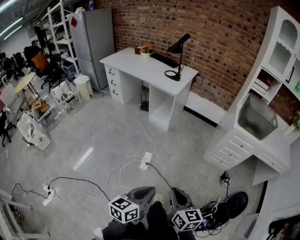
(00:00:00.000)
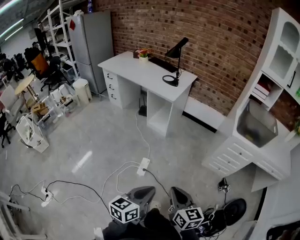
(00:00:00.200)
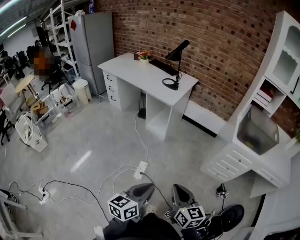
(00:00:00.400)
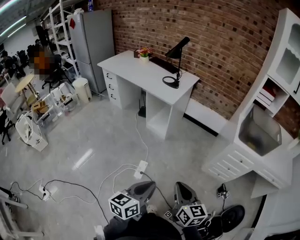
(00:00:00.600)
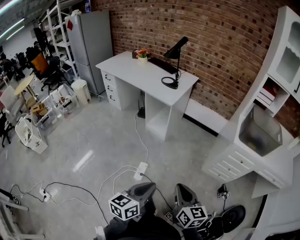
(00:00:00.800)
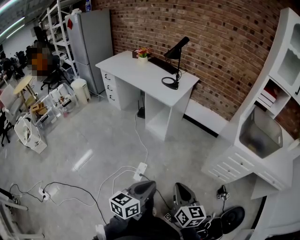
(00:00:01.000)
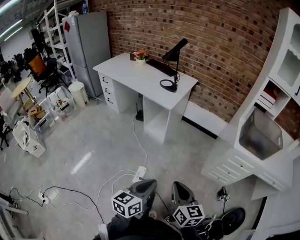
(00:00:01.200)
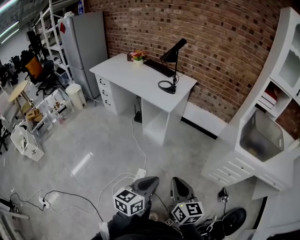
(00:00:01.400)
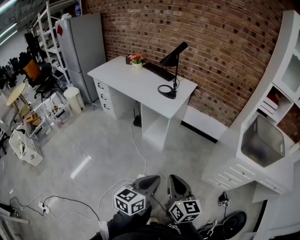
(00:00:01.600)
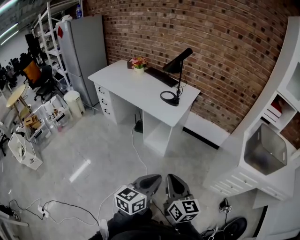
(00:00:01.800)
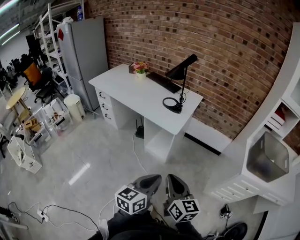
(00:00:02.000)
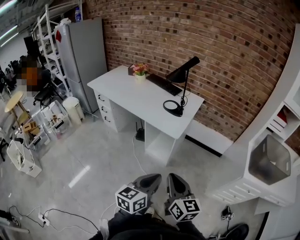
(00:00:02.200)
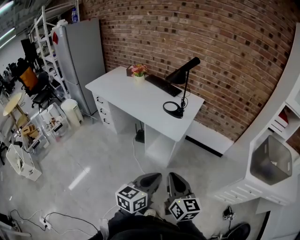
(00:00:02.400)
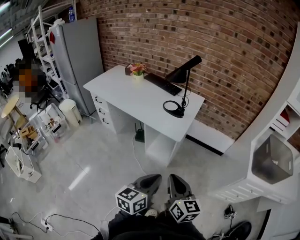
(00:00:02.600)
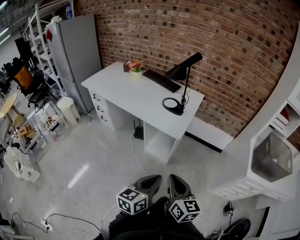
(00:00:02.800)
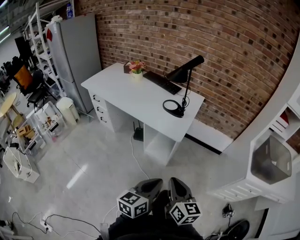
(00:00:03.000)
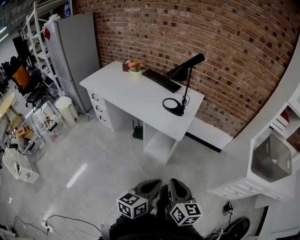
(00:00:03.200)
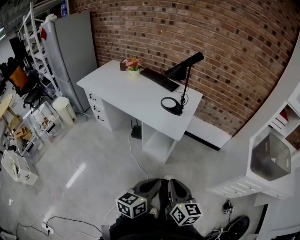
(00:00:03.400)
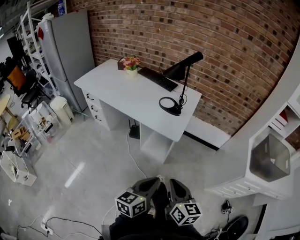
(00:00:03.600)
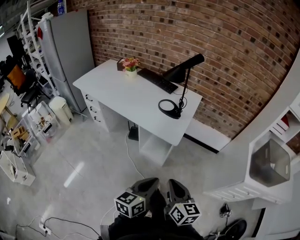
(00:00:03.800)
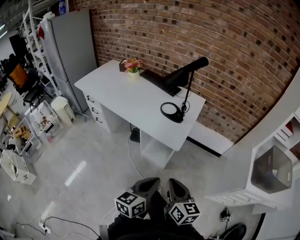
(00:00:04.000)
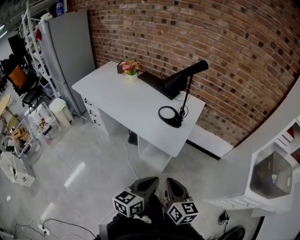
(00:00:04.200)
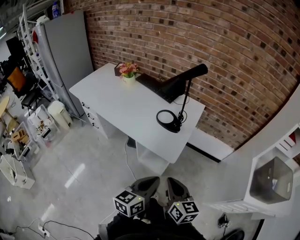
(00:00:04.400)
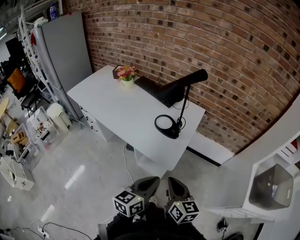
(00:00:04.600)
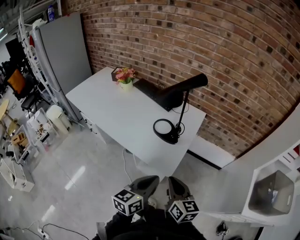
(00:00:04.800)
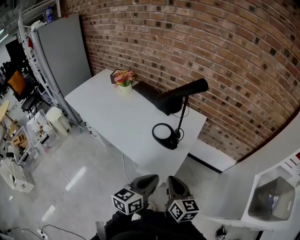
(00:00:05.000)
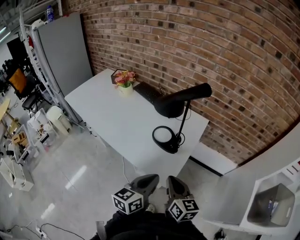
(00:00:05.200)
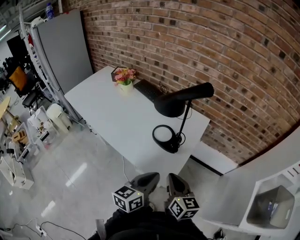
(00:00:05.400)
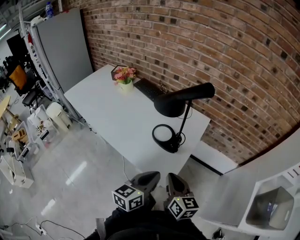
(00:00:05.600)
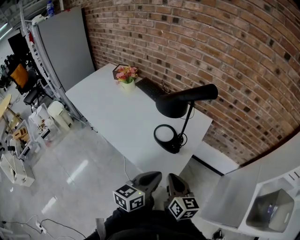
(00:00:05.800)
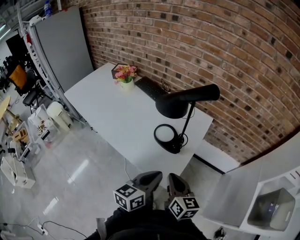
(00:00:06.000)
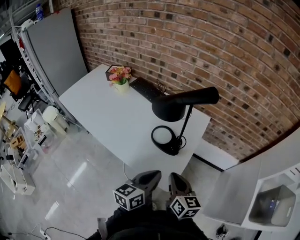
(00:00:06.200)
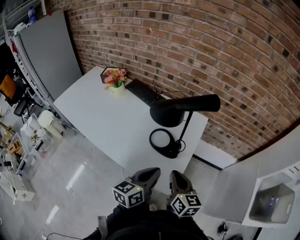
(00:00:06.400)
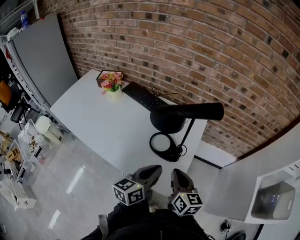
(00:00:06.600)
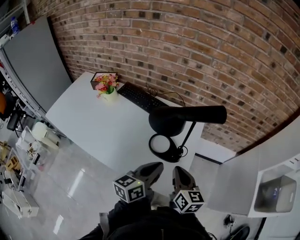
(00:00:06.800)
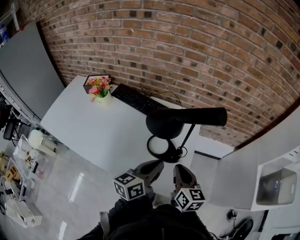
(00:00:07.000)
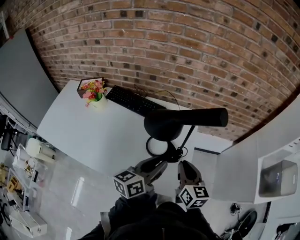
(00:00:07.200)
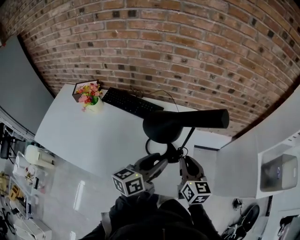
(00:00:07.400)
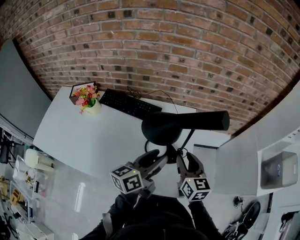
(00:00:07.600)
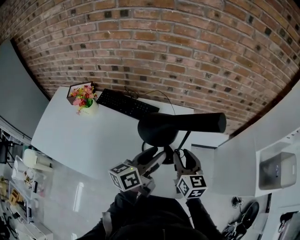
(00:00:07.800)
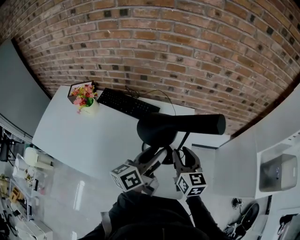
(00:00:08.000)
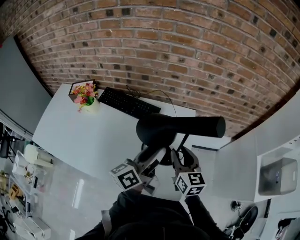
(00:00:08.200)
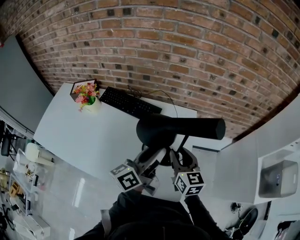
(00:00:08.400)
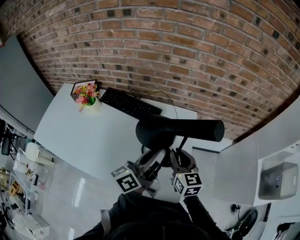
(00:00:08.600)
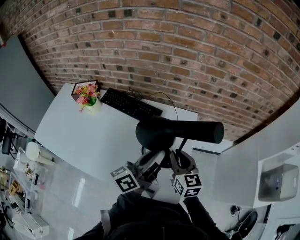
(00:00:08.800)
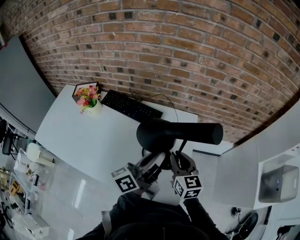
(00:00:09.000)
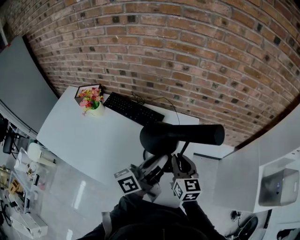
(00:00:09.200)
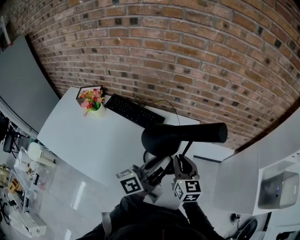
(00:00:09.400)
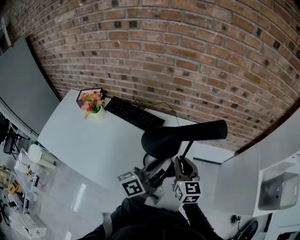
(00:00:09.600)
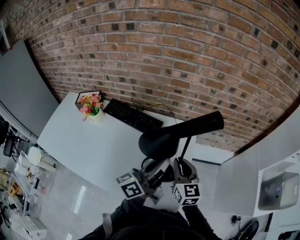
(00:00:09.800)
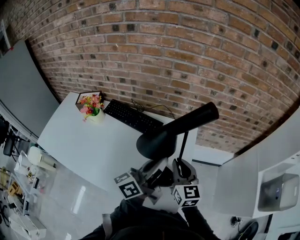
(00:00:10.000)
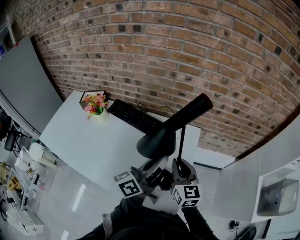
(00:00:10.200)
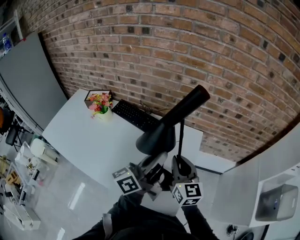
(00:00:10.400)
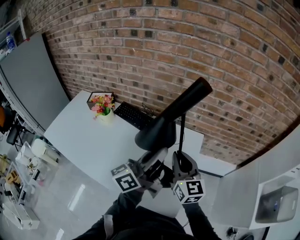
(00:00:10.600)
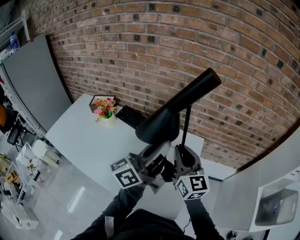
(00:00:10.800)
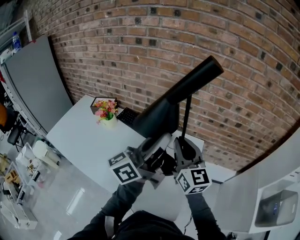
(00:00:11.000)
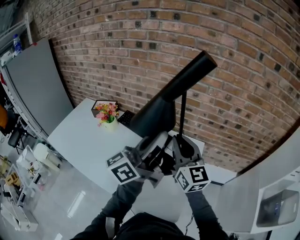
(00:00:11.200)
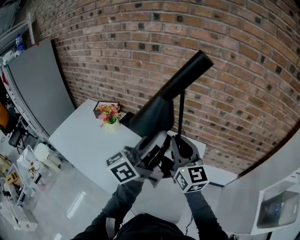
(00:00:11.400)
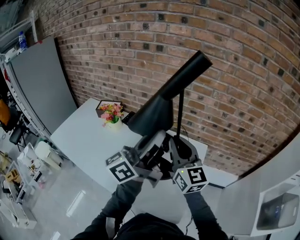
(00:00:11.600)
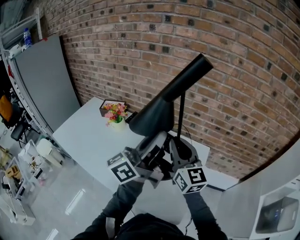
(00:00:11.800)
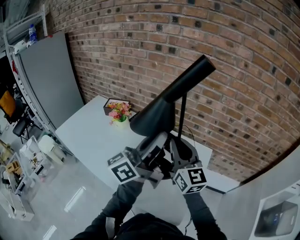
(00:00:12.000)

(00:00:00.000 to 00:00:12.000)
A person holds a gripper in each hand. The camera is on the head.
00:00:00.000 - 00:00:01.600: The two grippers go about 30 cm forward.
00:00:01.600 - 00:00:03.000: The two grippers go some 20 cm forward and to the left.
00:00:03.000 - 00:00:04.400: Both grippers move forward, roughly 20 cm.
00:00:04.400 - 00:00:06.000: The grippers both shift forward by approximately 20 cm.
00:00:06.000 - 00:00:07.600: The right gripper ends up approximately 15 cm from where it was, swivels about 30 degrees, and opens; the left gripper changes place by about 20 cm, changes its angle by approximately 30 degrees, and opens up.
00:00:07.600 - 00:00:09.000: The left gripper shifts by some 5 cm, rotates approximately 20 degrees, and closes up.
00:00:09.000 - 00:00:10.400: The two grippers go approximately 5 cm upward.
00:00:10.400 - 00:00:12.000: Both grippers move upward and to the left, some 15 cm.

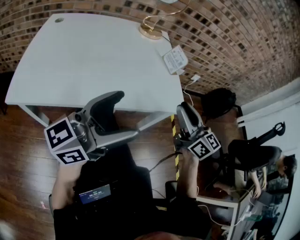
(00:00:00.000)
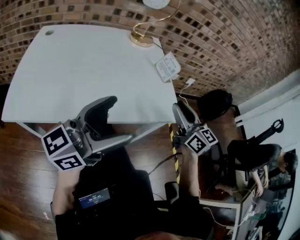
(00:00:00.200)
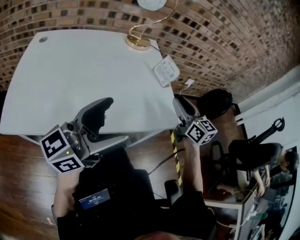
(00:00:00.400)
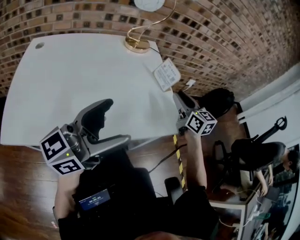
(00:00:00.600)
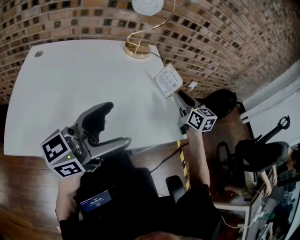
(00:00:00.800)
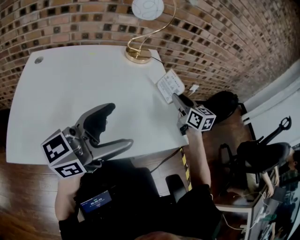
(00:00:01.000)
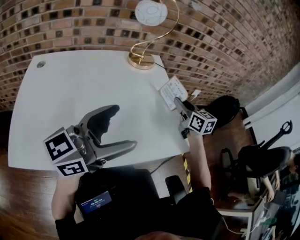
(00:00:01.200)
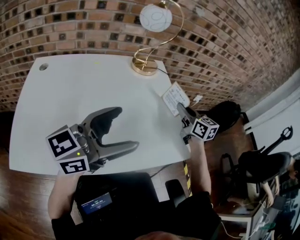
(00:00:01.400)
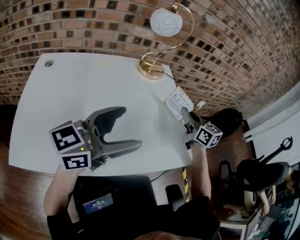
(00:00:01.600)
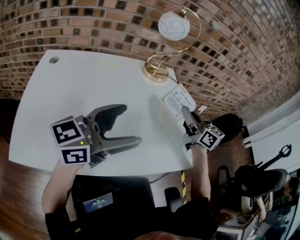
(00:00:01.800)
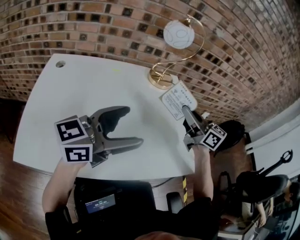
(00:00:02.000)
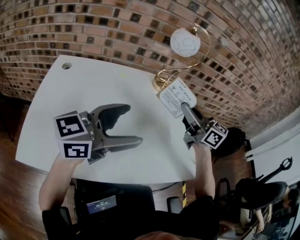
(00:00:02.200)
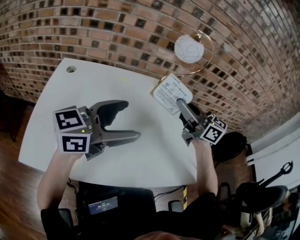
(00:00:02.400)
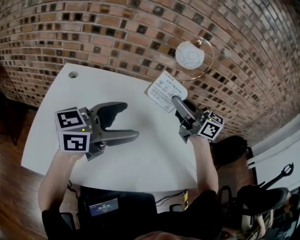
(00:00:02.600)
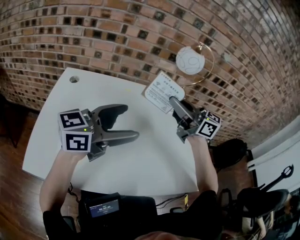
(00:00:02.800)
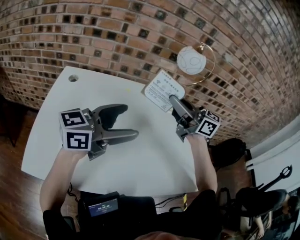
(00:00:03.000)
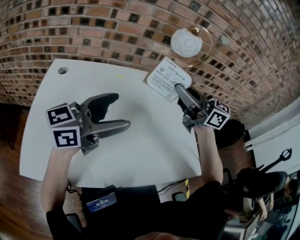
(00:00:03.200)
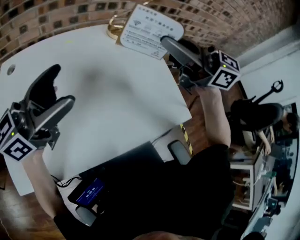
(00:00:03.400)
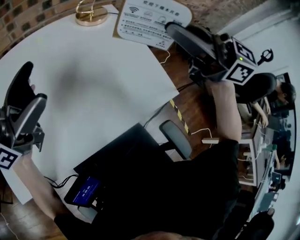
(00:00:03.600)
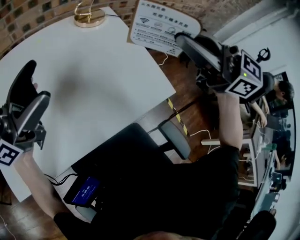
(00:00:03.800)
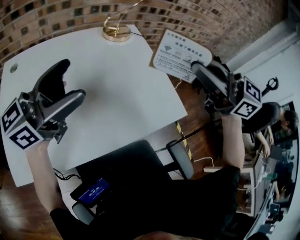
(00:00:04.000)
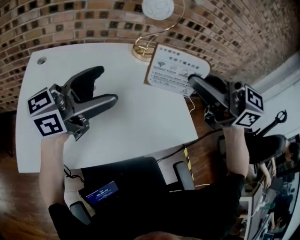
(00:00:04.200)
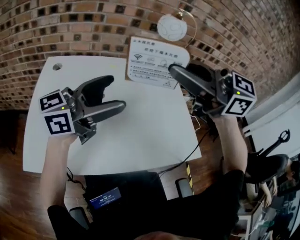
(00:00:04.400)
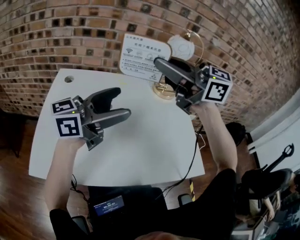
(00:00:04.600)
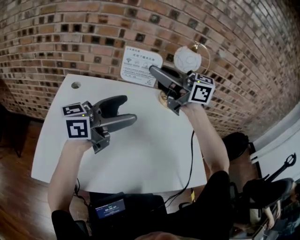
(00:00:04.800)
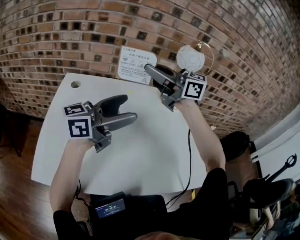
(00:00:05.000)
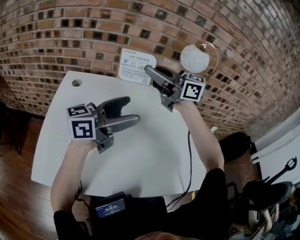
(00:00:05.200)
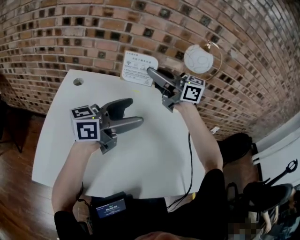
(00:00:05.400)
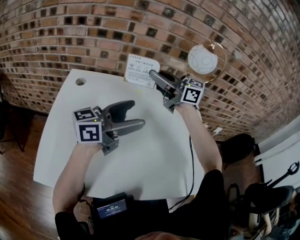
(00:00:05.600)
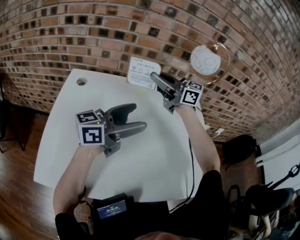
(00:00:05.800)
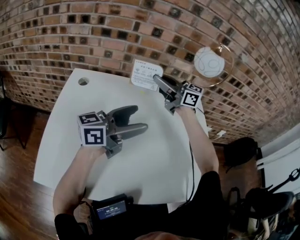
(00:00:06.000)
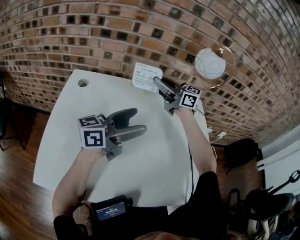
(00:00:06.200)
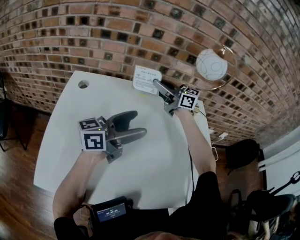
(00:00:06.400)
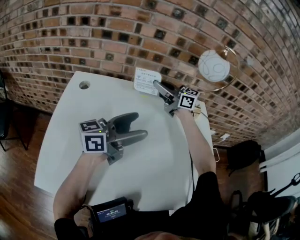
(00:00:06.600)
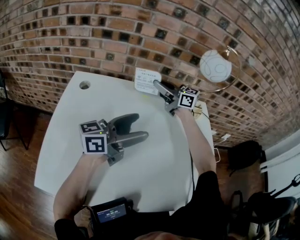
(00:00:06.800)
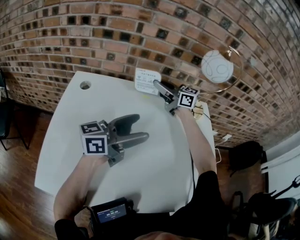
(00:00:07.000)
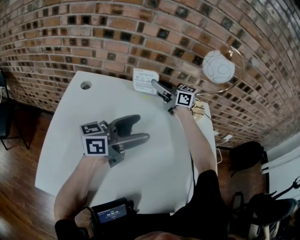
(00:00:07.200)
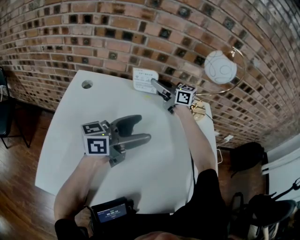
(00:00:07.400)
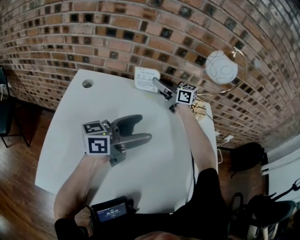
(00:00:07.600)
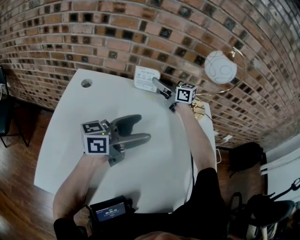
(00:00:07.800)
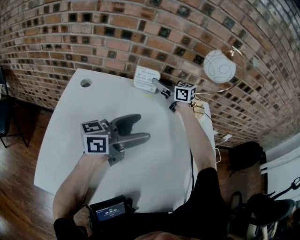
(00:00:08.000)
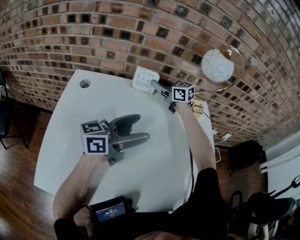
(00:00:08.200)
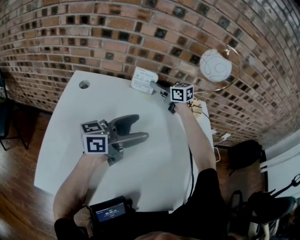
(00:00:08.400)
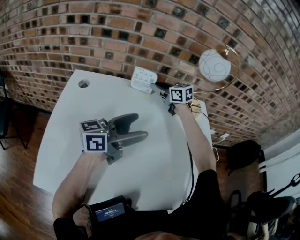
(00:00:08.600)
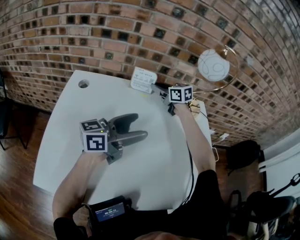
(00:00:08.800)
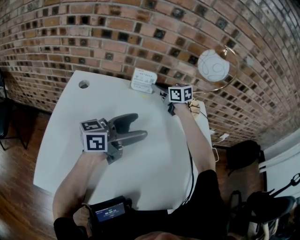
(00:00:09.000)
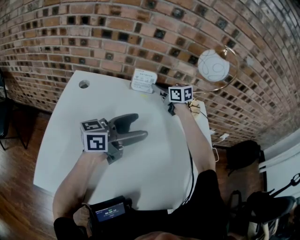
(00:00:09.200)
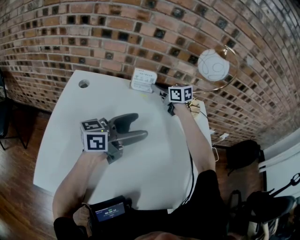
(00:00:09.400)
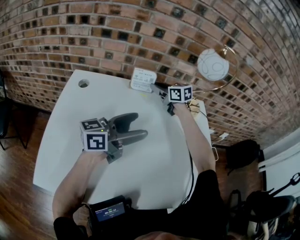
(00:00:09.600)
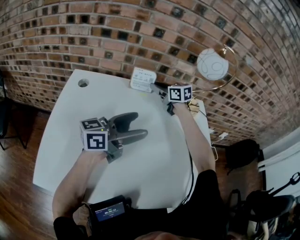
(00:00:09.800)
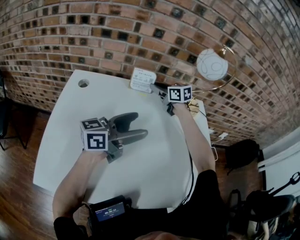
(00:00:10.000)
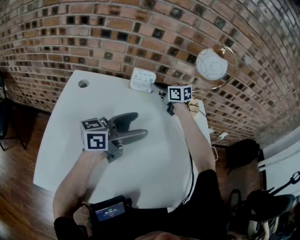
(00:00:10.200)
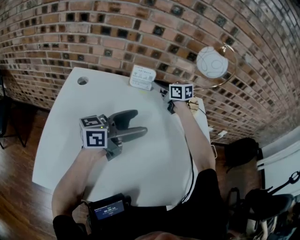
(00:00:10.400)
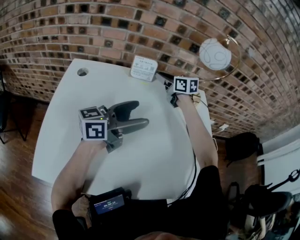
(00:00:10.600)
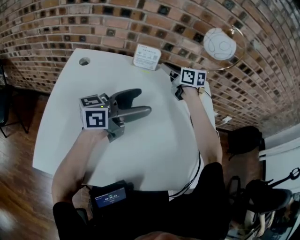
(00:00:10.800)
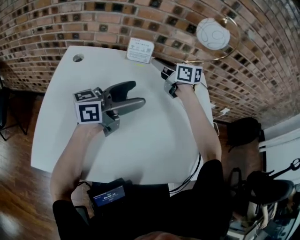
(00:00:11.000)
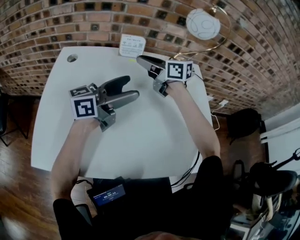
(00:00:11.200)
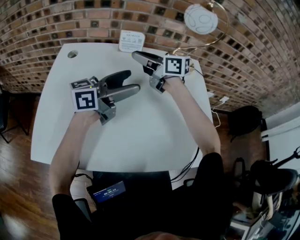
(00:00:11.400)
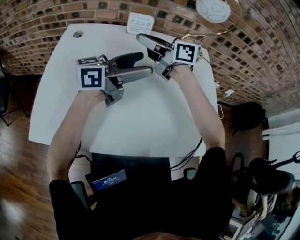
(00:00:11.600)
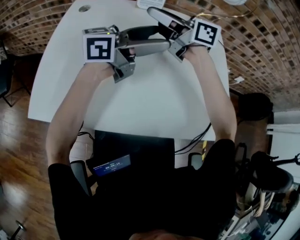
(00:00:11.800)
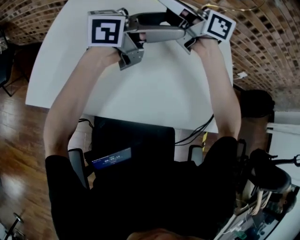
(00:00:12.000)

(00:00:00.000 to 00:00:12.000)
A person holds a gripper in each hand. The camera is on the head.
00:00:00.000 - 00:00:01.600: The right gripper moves forward, roughly 25 cm, and closes its fingers; the left gripper moves forward, roughly 15 cm.
00:00:01.600 - 00:00:03.000: The left gripper shifts by roughly 15 cm, while the right gripper ends up approximately 30 cm from where it was, and rotates about 40 degrees.
00:00:03.000 - 00:00:04.400: The right gripper changes place by some 20 cm.
00:00:04.400 - 00:00:06.000: The left gripper ends up about 10 cm from where it was; the right gripper moves some 35 cm.
00:00:06.000 - 00:00:07.600: The right gripper ends up roughly 15 cm from where it was.
00:00:07.600 - 00:00:09.000: The right gripper shifts by roughly 5 cm, and turns by about 30 degrees.
00:00:09.000 - 00:00:10.400: Both grippers stay about where they are.
00:00:10.400 - 00:00:12.000: The right gripper shifts by about 25 cm, and rotates about 30 degrees, while the left gripper shifts by roughly 10 cm.
